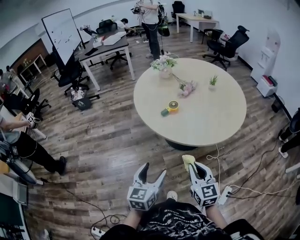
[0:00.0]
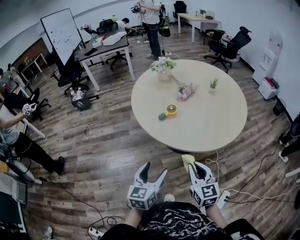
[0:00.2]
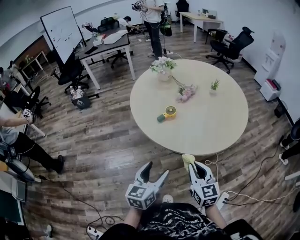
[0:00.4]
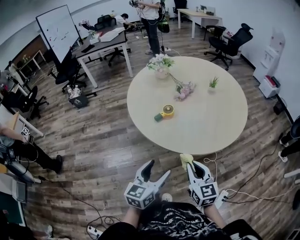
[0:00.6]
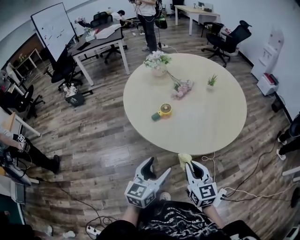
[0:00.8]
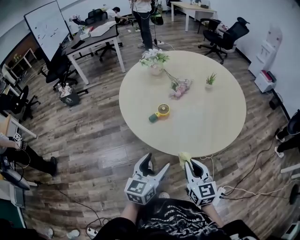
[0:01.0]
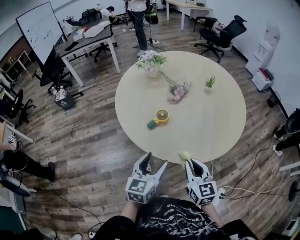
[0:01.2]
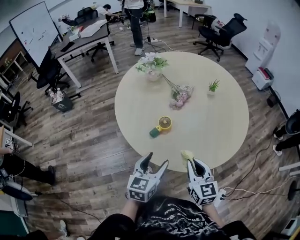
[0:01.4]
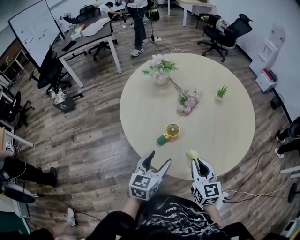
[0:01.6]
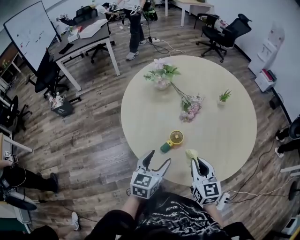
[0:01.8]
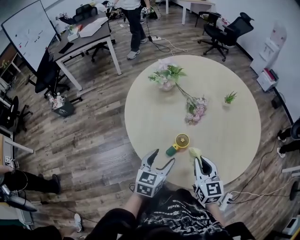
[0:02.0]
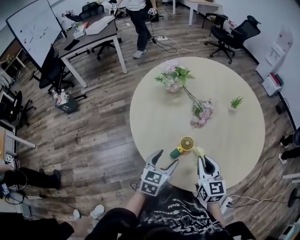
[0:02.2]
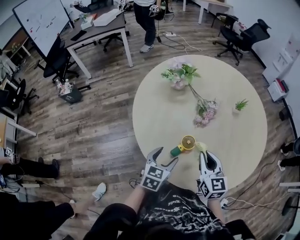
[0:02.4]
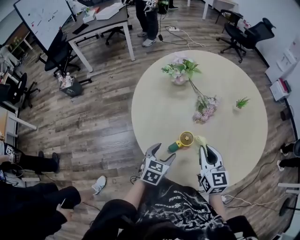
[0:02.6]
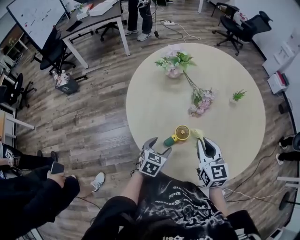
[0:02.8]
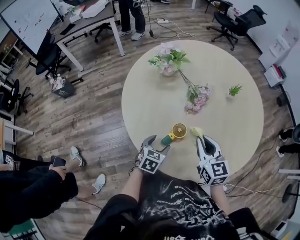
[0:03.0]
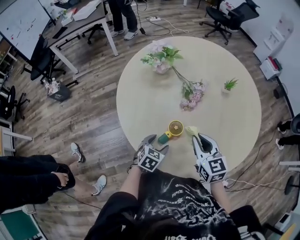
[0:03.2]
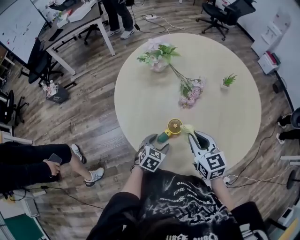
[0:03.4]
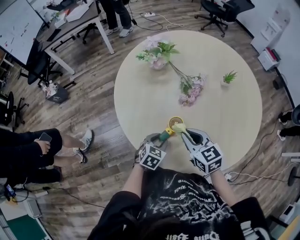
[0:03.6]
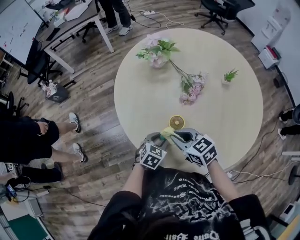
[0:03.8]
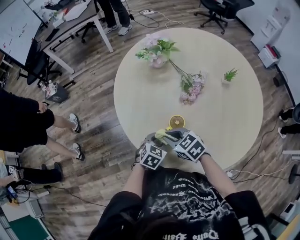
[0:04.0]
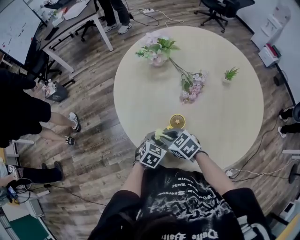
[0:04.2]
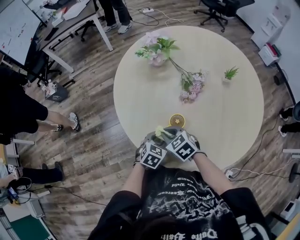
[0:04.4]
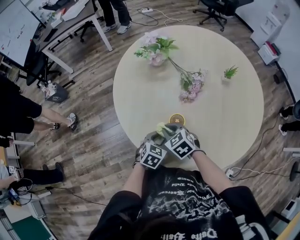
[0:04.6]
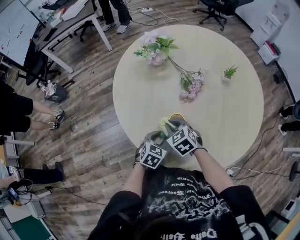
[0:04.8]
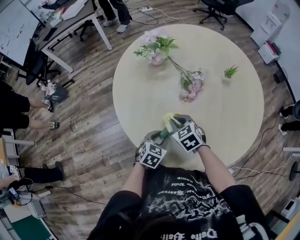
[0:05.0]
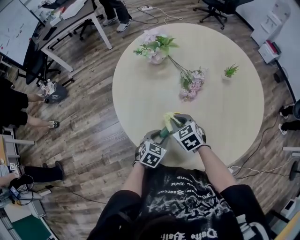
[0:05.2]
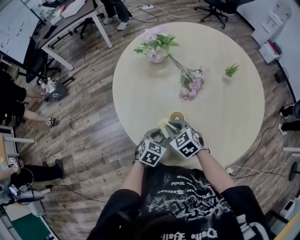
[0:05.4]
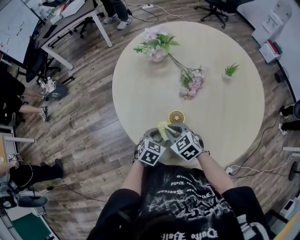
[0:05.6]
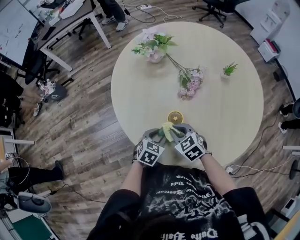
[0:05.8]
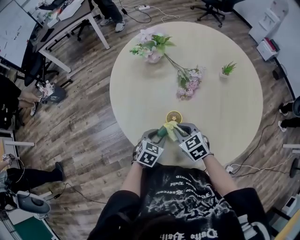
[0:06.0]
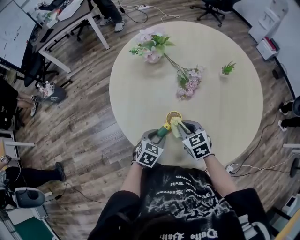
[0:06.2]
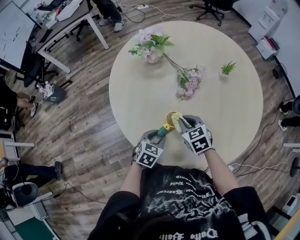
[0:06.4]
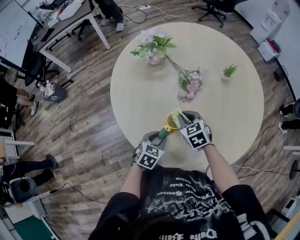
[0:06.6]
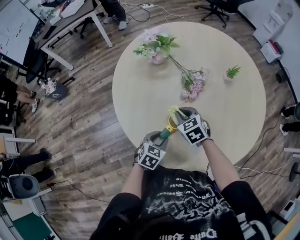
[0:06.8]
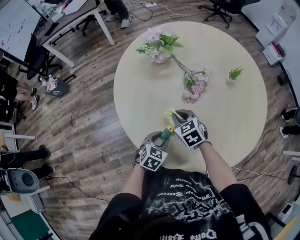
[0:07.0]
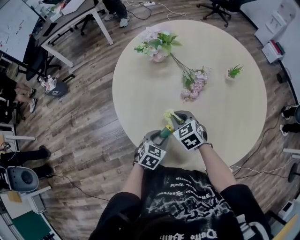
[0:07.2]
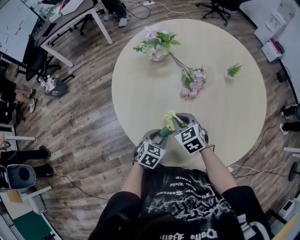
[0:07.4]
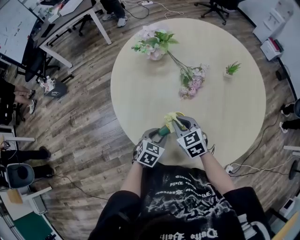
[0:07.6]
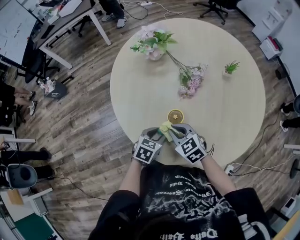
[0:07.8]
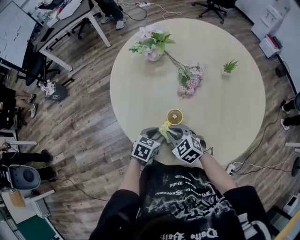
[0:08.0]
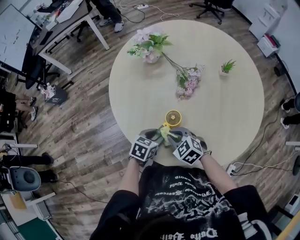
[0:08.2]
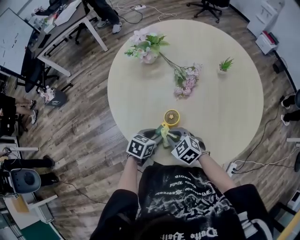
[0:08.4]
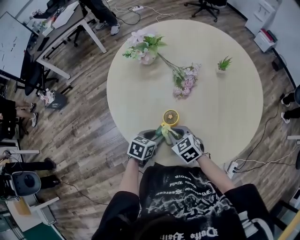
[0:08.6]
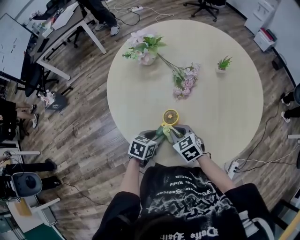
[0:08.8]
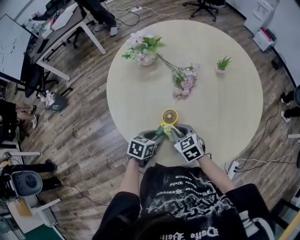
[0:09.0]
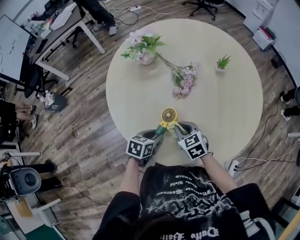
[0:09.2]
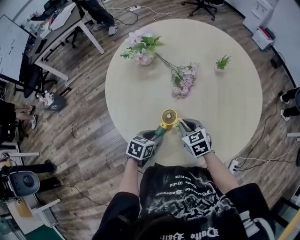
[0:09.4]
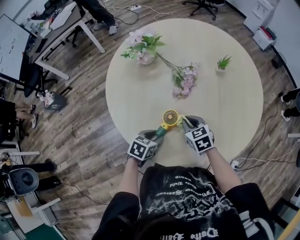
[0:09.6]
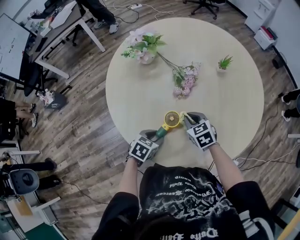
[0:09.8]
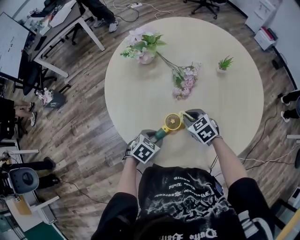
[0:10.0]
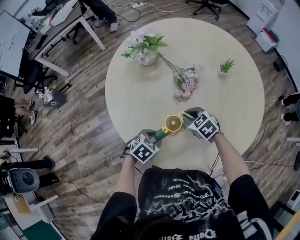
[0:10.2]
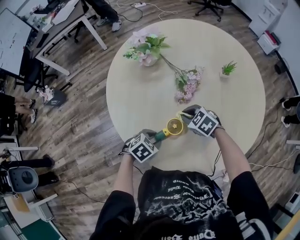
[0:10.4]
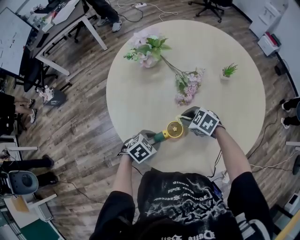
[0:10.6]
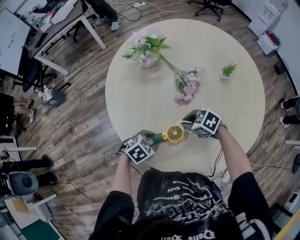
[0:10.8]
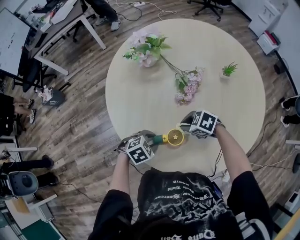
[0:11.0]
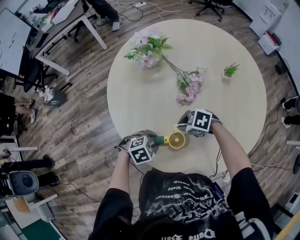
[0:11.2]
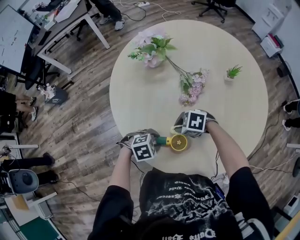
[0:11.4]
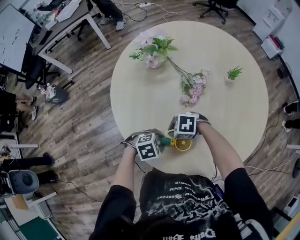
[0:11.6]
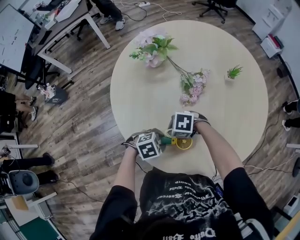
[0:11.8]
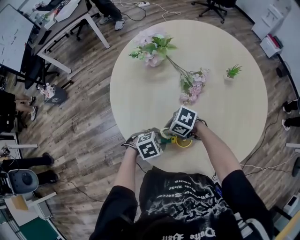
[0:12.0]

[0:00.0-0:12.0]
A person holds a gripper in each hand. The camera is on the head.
0:00.0 to 0:01.6: Both grippers travel together forward, about 30 cm.
0:01.6 to 0:03.0: The right gripper goes approximately 15 cm forward, while the left gripper shifts roughly 15 cm downward and forward, and changes its angle by about 30 degrees.
0:03.0 to 0:04.4: The right gripper moves to the left and downward, some 20 cm, and turns by roughly 40 degrees. The left gripper closes up.
0:04.4 to 0:06.0: The right gripper travels to the right by approximately 5 cm.
0:09.0 to 0:10.4: The right gripper shifts by roughly 10 cm, and changes its angle by some 20 degrees; the left gripper turns by some 30 degrees.
0:10.4 to 0:12.0: The right gripper changes place by roughly 15 cm, and changes its angle by roughly 30 degrees.

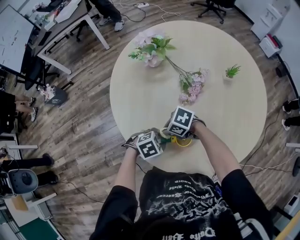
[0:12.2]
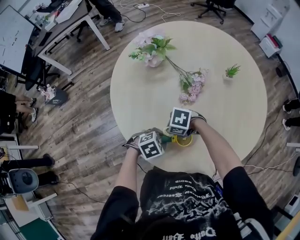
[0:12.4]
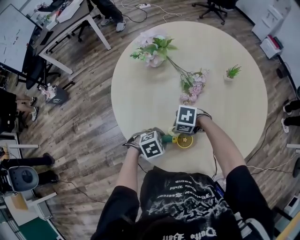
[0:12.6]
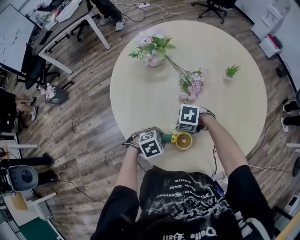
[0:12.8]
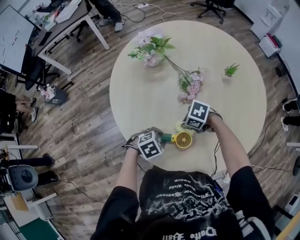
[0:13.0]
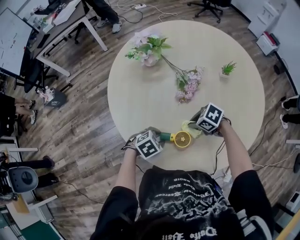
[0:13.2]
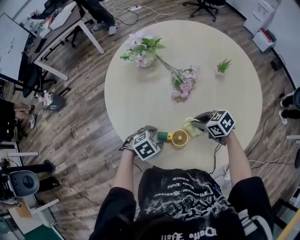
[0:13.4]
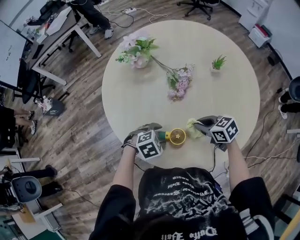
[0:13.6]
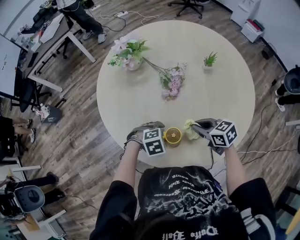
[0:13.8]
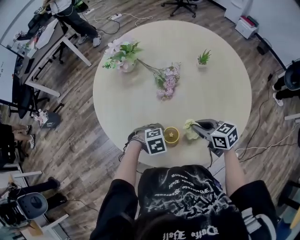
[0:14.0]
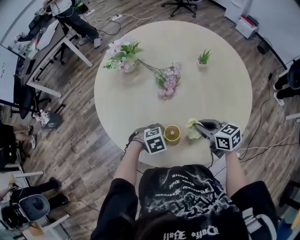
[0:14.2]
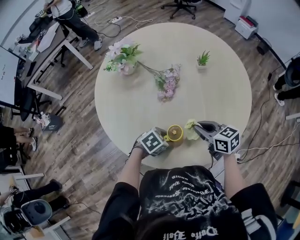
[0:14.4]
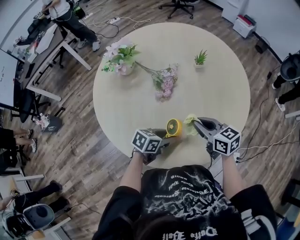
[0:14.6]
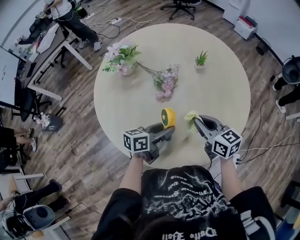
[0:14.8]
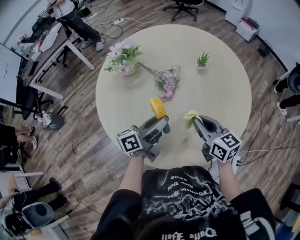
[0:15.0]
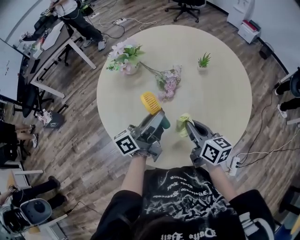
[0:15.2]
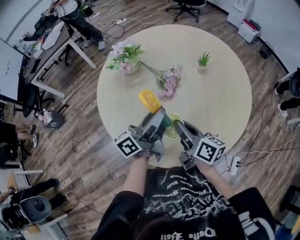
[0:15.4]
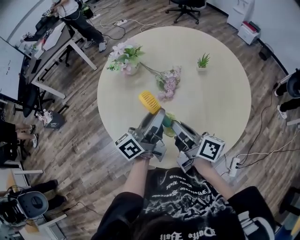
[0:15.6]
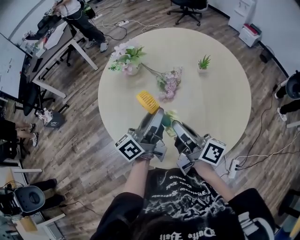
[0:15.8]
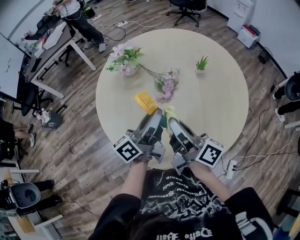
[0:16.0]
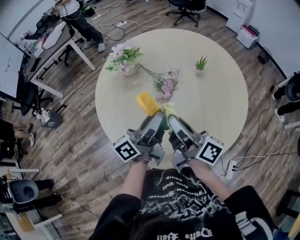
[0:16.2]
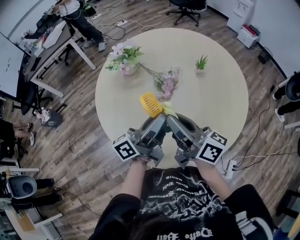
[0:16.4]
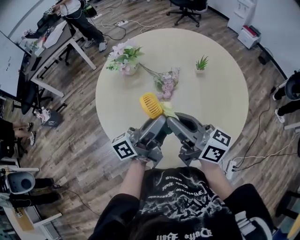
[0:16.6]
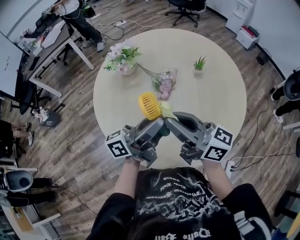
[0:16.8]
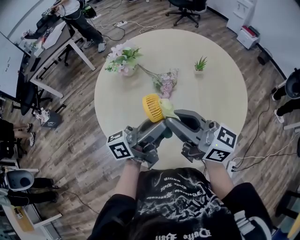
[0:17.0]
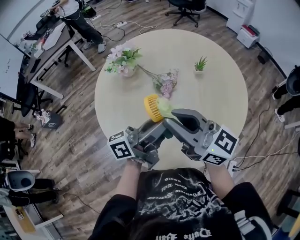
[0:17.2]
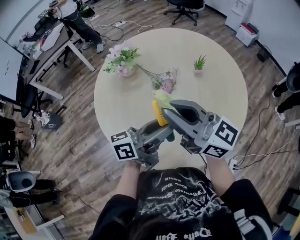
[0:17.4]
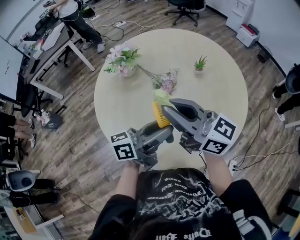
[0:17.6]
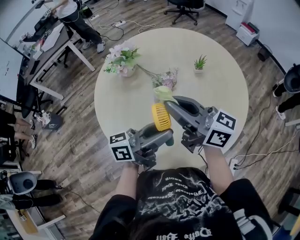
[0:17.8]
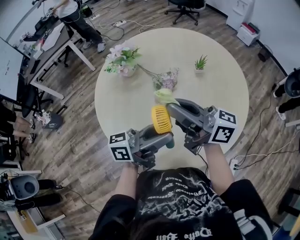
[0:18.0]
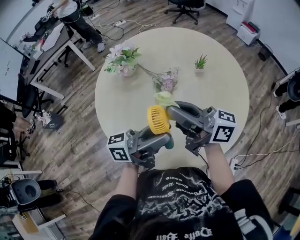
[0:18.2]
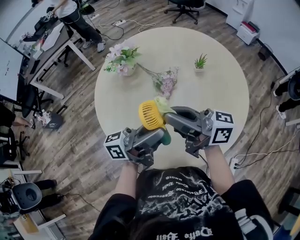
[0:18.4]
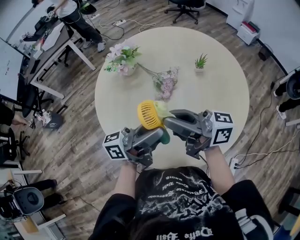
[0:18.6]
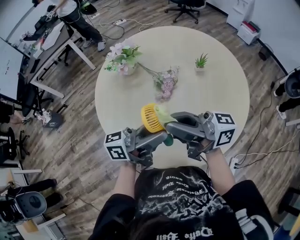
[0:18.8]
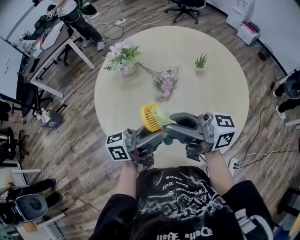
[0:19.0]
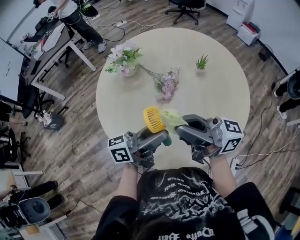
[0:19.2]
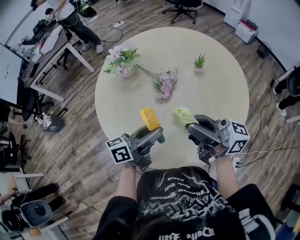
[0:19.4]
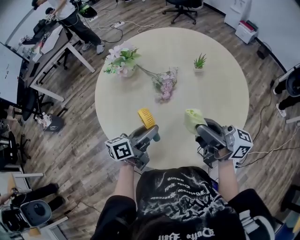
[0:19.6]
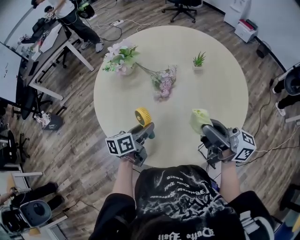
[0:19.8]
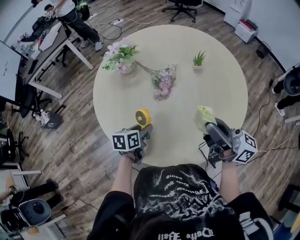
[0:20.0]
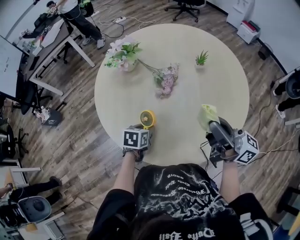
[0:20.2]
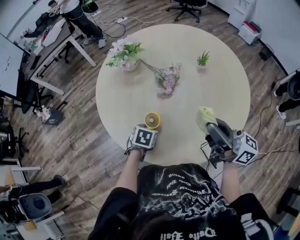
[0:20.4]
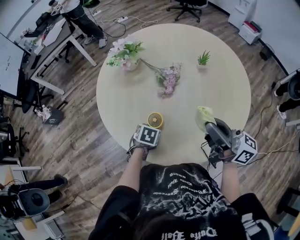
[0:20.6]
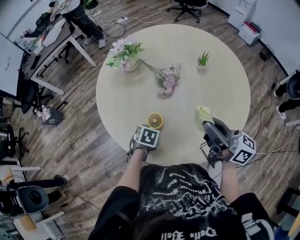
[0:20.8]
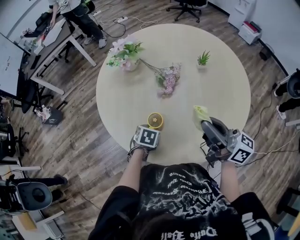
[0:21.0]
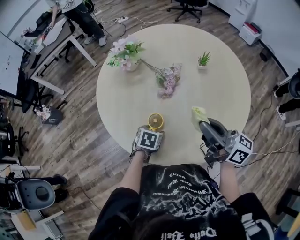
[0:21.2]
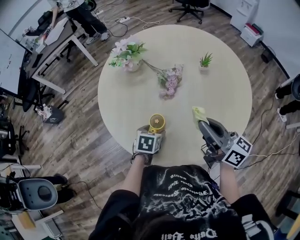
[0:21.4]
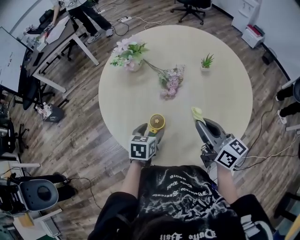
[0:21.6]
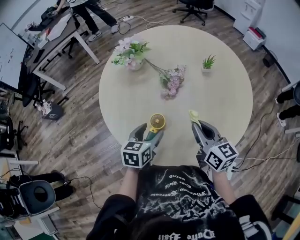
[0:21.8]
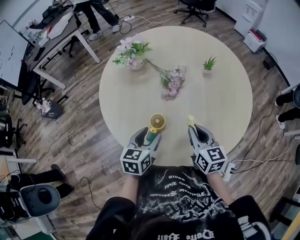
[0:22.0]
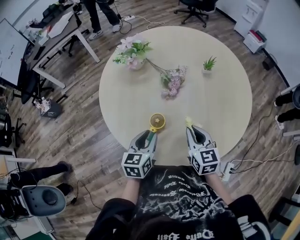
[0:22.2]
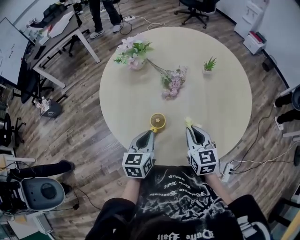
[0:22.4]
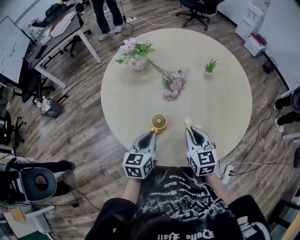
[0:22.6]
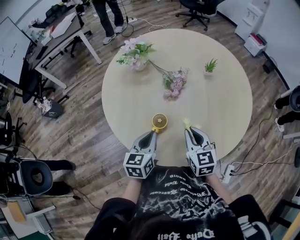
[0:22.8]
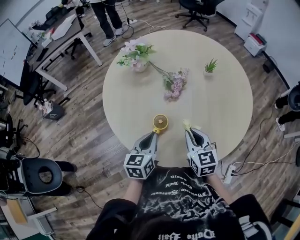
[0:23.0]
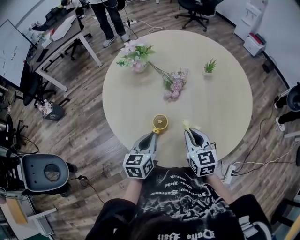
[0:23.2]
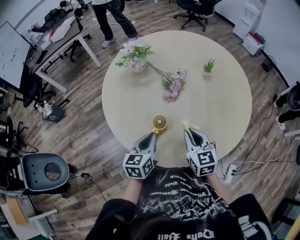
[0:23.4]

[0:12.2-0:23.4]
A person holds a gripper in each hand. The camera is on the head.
0:12.2 to 0:13.8: The left gripper shifts by about 5 cm, changes its angle by roughly 20 degrees, and opens up. Meanwhile the right gripper moves some 20 cm, and turns by roughly 50 degrees.
0:13.8 to 0:15.4: The right gripper shifts about 10 cm upward, and changes its angle by approximately 50 degrees; the left gripper moves upward, about 25 cm, and angles its fingers upward, by some 90 degrees.
0:15.4 to 0:17.0: The left gripper changes place by roughly 5 cm. Meanwhile the right gripper goes approximately 15 cm upward, and rotates approximately 40 degrees.
0:17.0 to 0:18.6: The right gripper rotates about 20 degrees.
0:18.6 to 0:20.2: The left gripper is displaced downward by some 25 cm, and tips its fingers downward by roughly 80 degrees. The right gripper changes place by some 15 cm, and rotates about 20 degrees.
0:20.2 to 0:21.8: The left gripper moves upward, about 10 cm, swivels about 20 degrees, and opens. The right gripper is displaced downward by about 15 cm, and angles its fingers downward, by some 40 degrees.
0:21.8 to 0:23.4: The right gripper moves approximately 5 cm, and swivels approximately 20 degrees; the left gripper closes its fingers.
